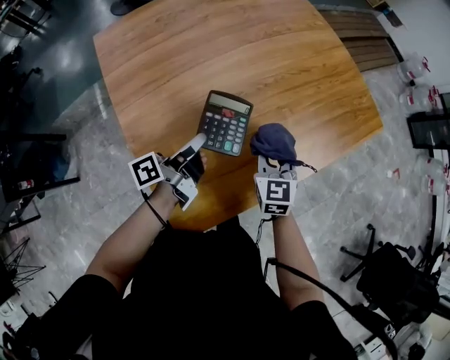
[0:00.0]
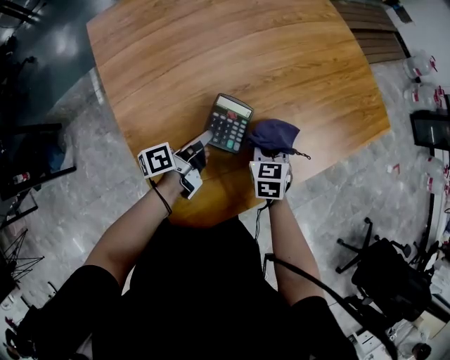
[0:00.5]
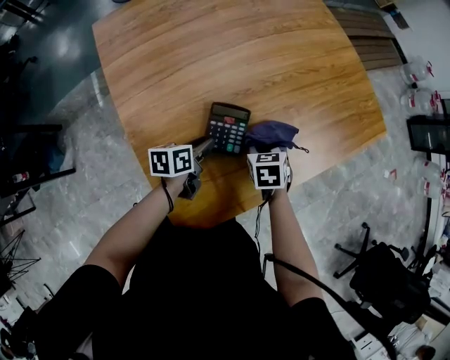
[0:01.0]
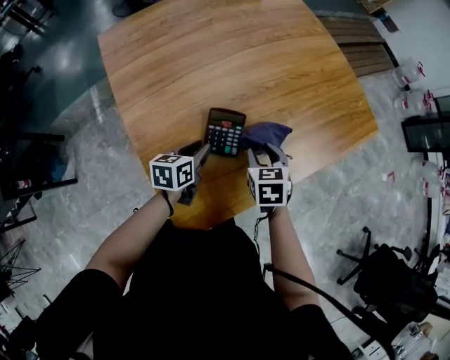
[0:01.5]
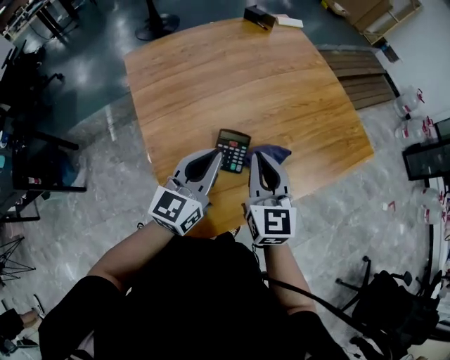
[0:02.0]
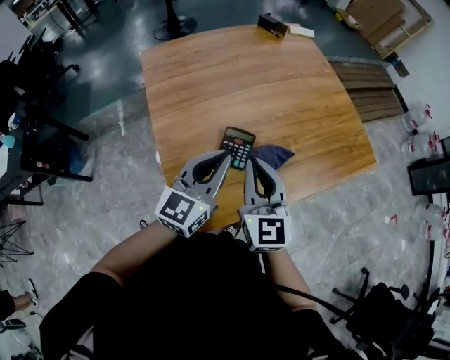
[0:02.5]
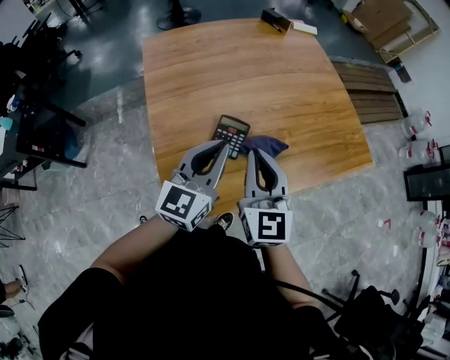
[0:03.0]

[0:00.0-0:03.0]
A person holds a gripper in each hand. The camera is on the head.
0:00.0 to 0:01.5: The left gripper is displaced downward by some 10 cm, and angles its fingers downward, by approximately 30 degrees. Meanwhile the right gripper travels downward and back again, some 10 cm each way, and changes its angle by roughly 30 degrees.
0:01.5 to 0:03.0: Both grippers move upward, roughly 25 cm. The left gripper tips its fingers upward by approximately 30 degrees, and closes its fingers. The right gripper angles its fingers upward, by roughly 50 degrees, and closes up.

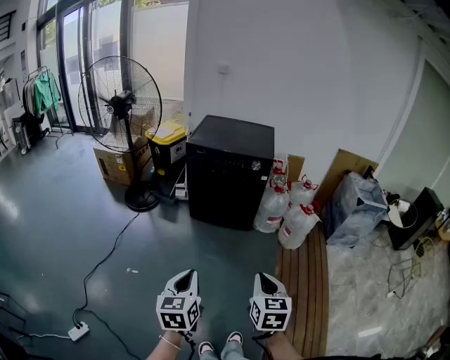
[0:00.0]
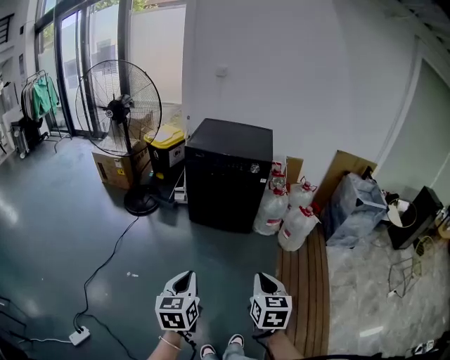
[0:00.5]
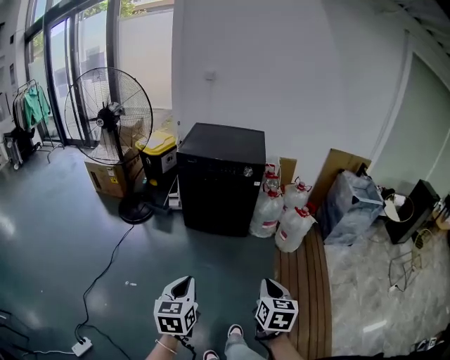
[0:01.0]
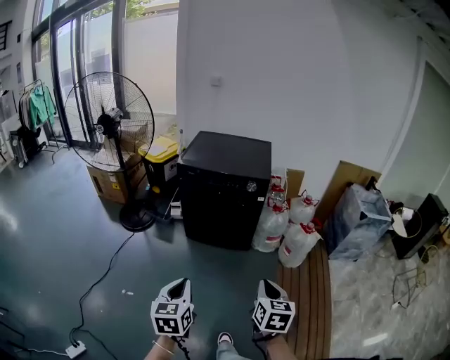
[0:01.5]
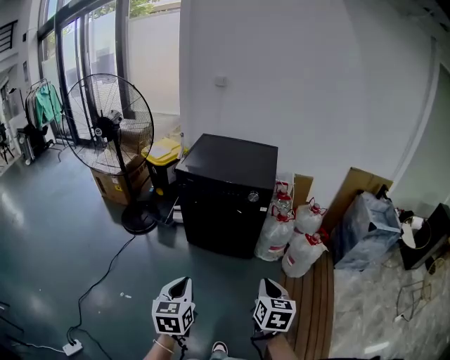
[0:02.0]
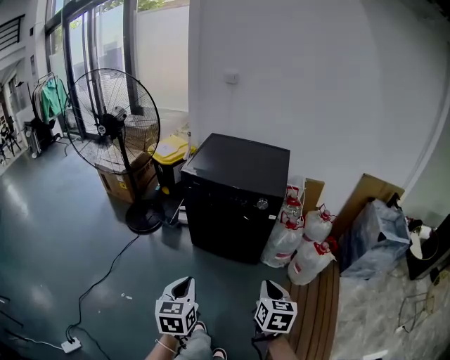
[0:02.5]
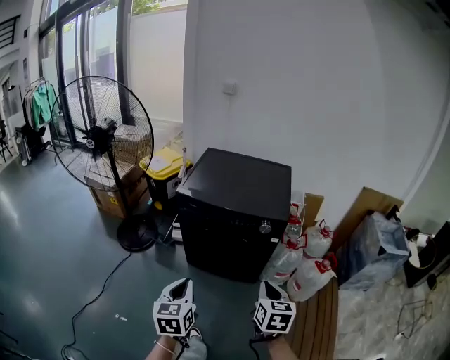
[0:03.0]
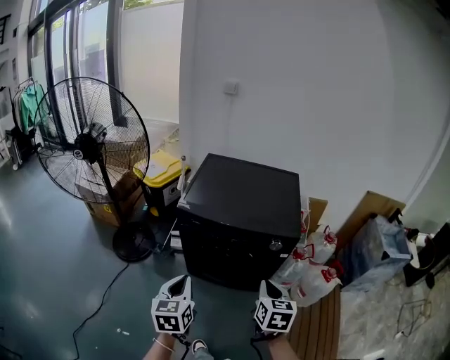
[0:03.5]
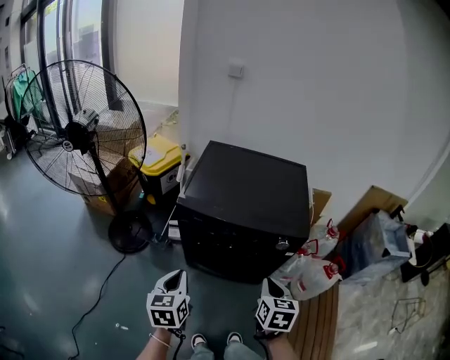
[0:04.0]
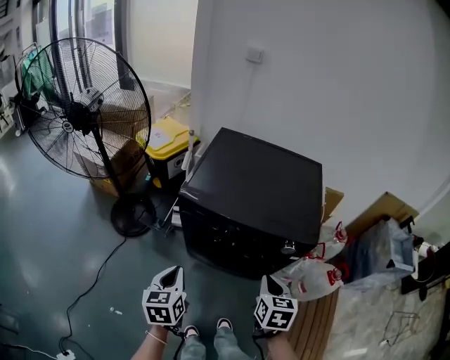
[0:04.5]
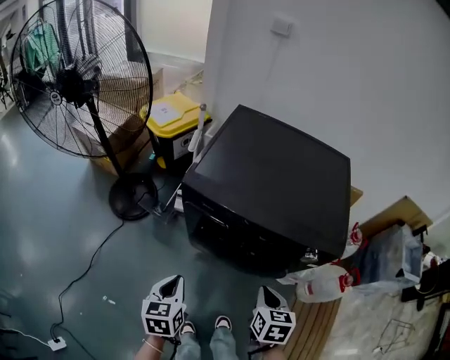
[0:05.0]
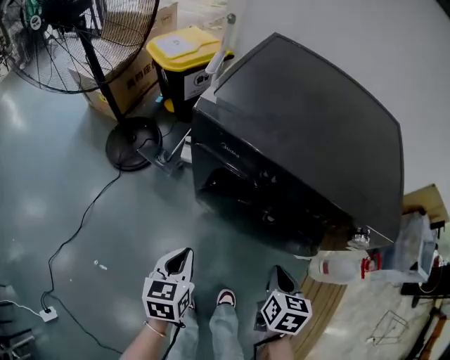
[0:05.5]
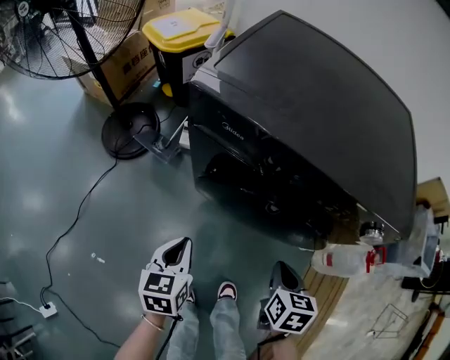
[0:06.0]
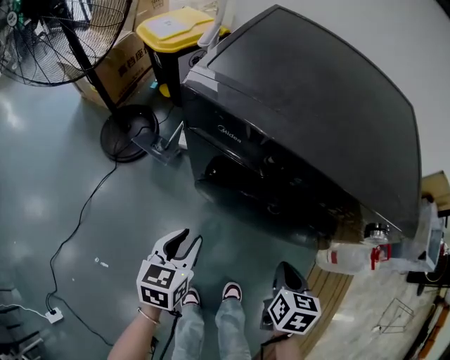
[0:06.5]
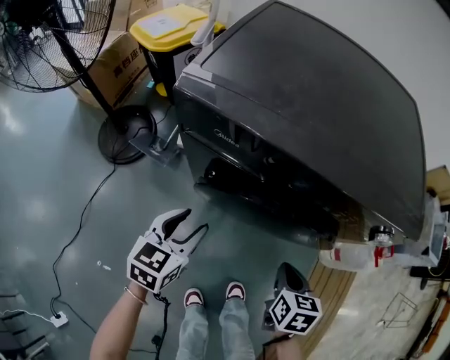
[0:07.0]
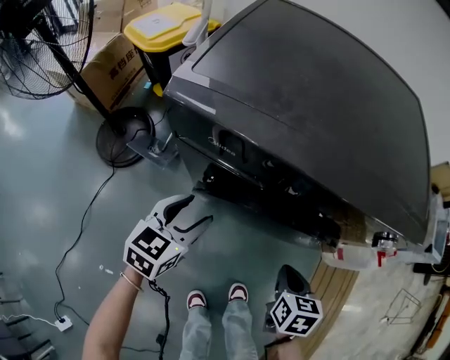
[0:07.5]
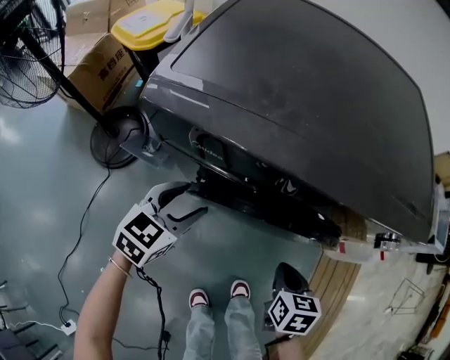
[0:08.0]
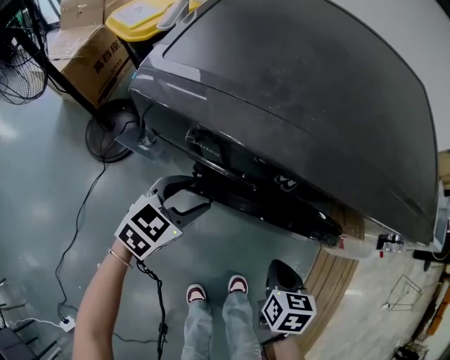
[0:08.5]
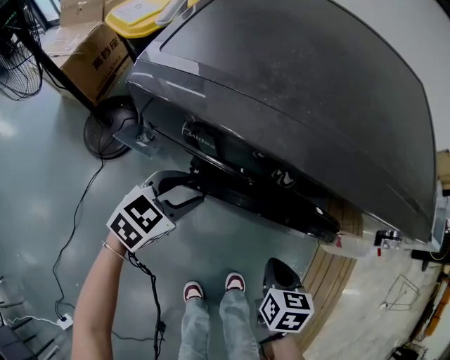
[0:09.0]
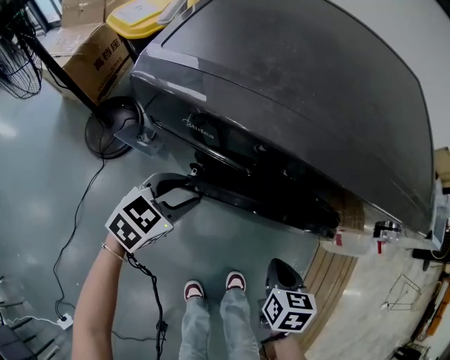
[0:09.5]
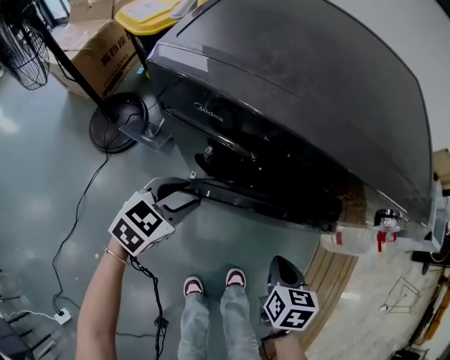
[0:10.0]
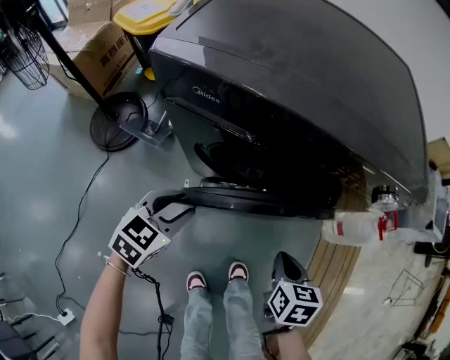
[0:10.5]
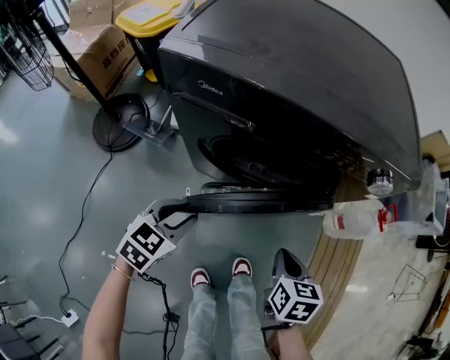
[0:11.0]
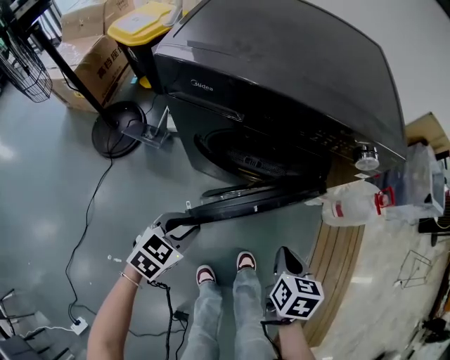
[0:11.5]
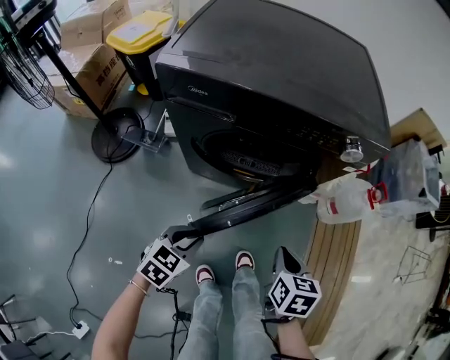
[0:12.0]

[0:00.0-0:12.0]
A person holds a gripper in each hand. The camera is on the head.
0:00.0 to 0:02.0: The two grippers go approximately 20 cm forward.
0:02.0 to 0:04.0: The grippers both shift forward by some 35 cm.
0:04.0 to 0:06.0: The two grippers go roughly 30 cm downward.
0:06.0 to 0:08.0: The left gripper shifts about 15 cm forward, turns by approximately 40 degrees, and opens its fingers.
0:08.0 to 0:10.0: The left gripper changes place by roughly 5 cm.
0:10.0 to 0:12.0: The left gripper shifts approximately 20 cm backward and to the right, and closes up; the right gripper heads backward, upward and to the right, covering roughly 15 cm.

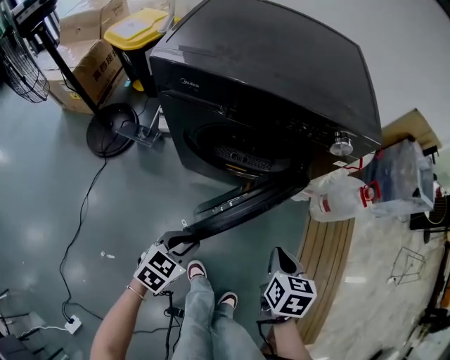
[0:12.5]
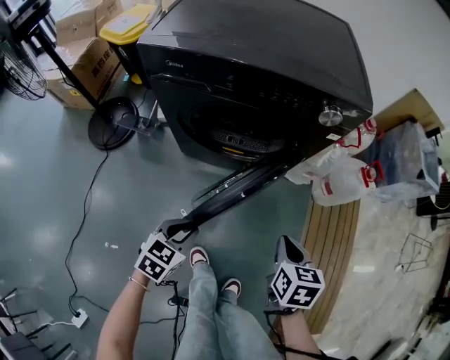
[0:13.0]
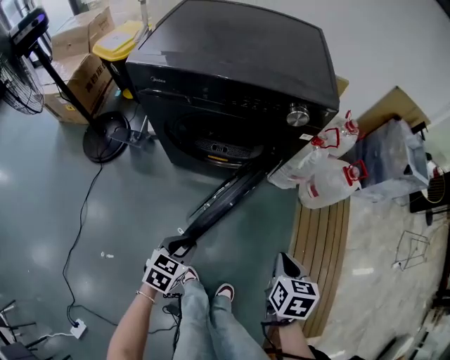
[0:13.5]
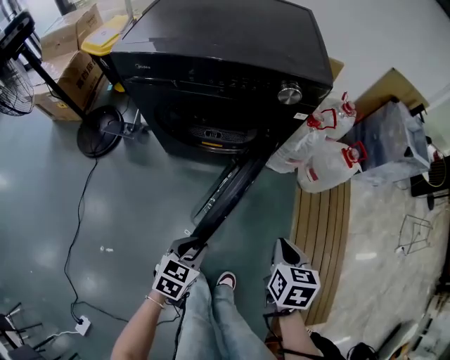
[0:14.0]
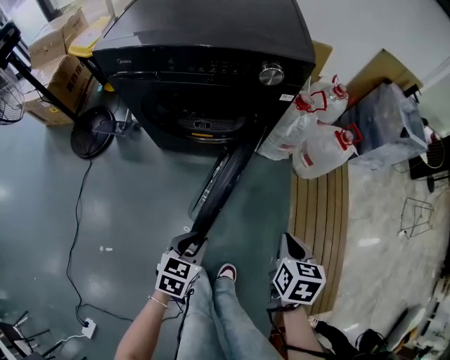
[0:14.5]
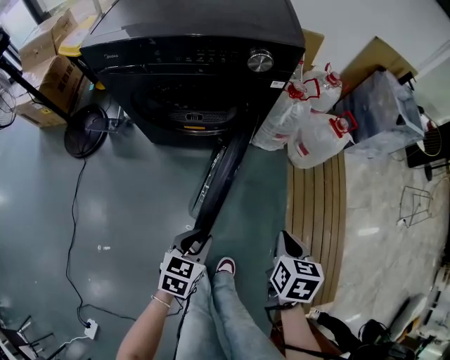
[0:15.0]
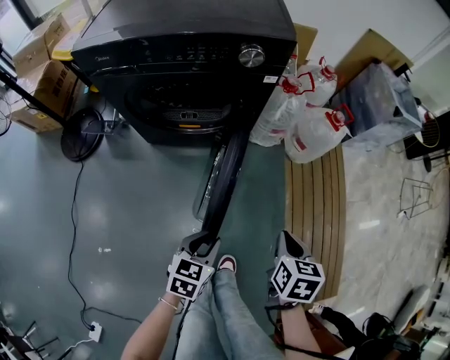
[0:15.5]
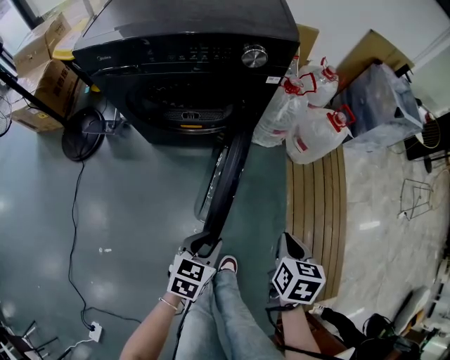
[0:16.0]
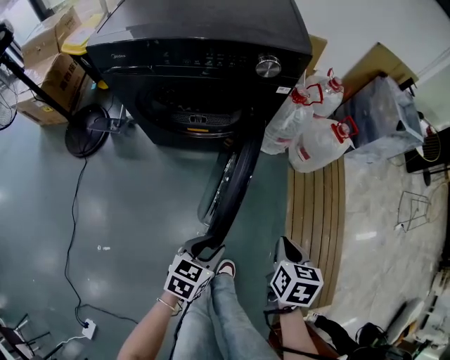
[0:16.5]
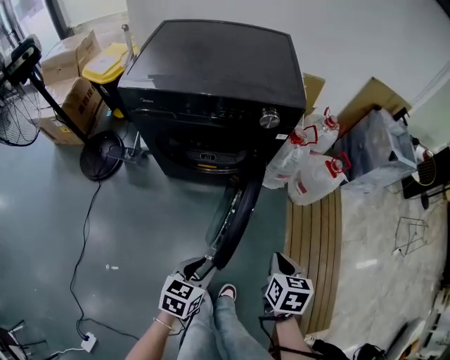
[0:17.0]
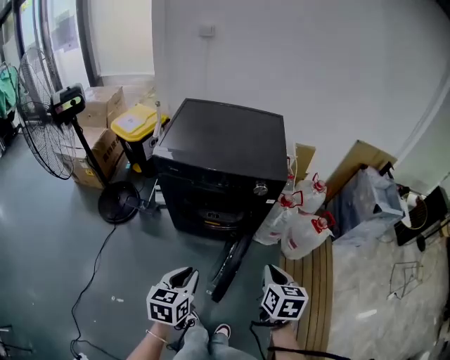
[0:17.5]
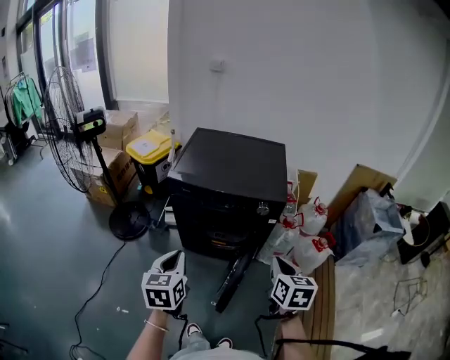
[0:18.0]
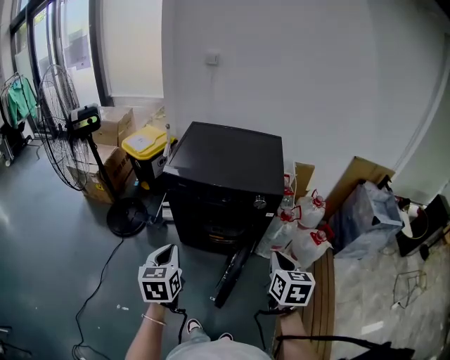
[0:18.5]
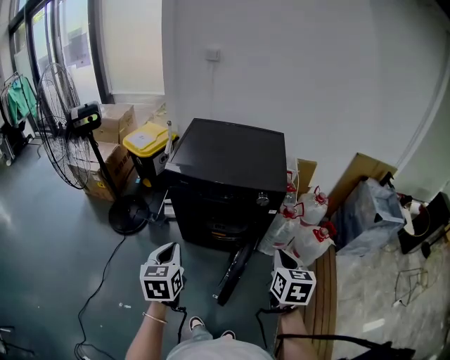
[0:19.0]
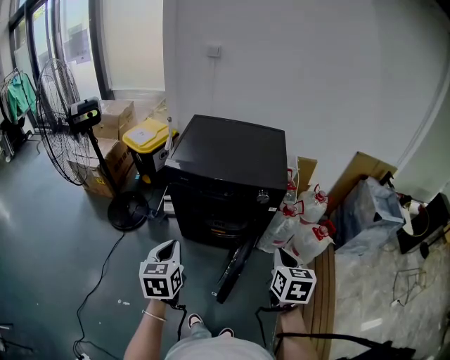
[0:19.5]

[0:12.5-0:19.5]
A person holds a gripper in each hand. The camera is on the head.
0:12.5 to 0:14.5: The two grippers go roughly 20 cm to the right and backward.
0:14.5 to 0:16.0: The left gripper is displaced to the right by about 5 cm.
0:16.0 to 0:17.5: Both grippers move upward and to the left, about 30 cm. The right gripper turns by some 20 degrees. The left gripper rotates approximately 30 degrees.
0:17.5 to 0:19.5: The right gripper shifts roughly 10 cm upward. Meanwhile the left gripper moves upward and to the left, roughly 15 cm.

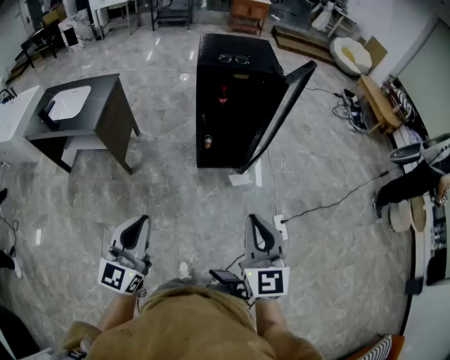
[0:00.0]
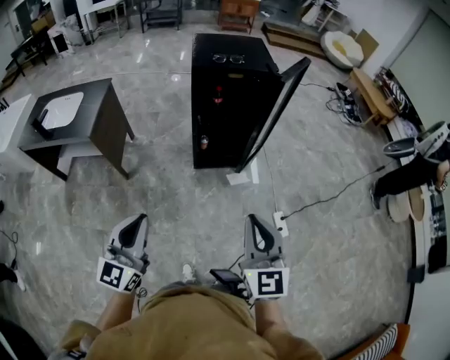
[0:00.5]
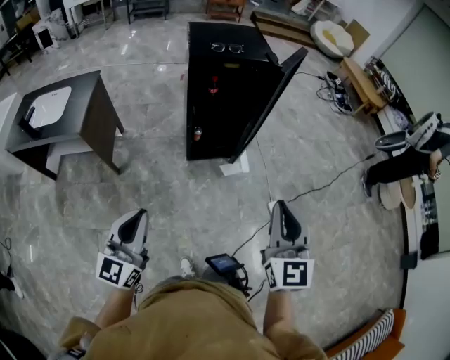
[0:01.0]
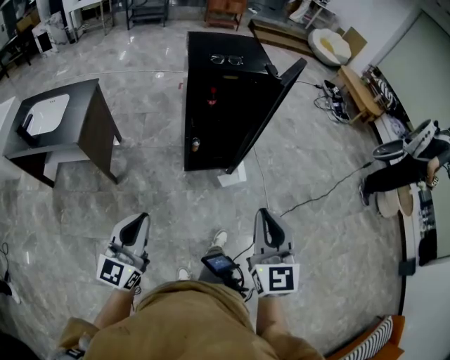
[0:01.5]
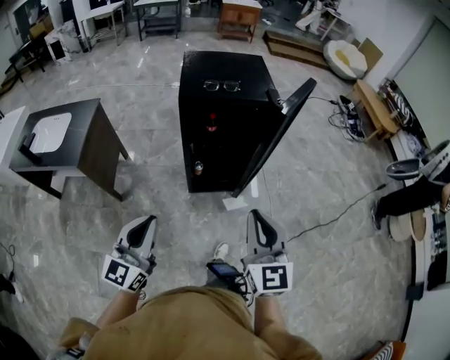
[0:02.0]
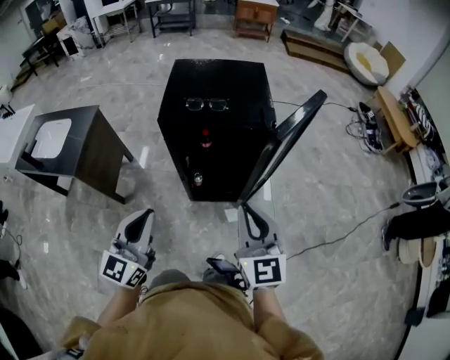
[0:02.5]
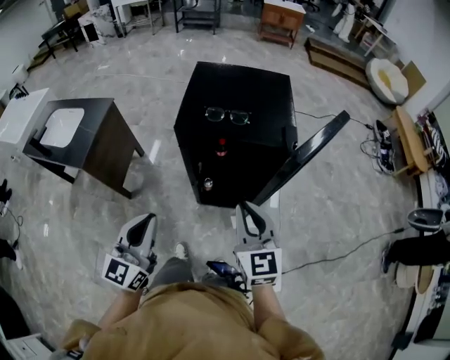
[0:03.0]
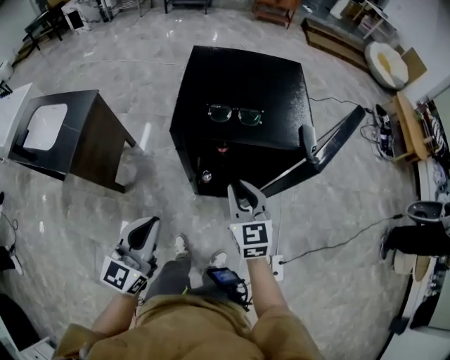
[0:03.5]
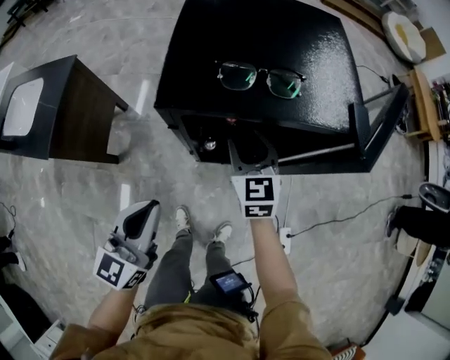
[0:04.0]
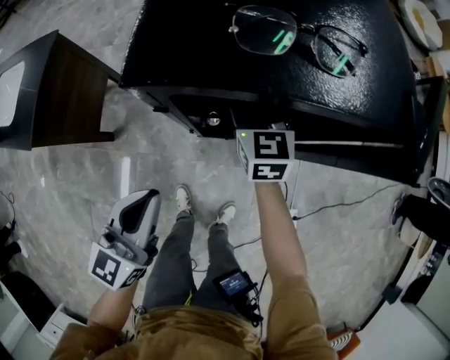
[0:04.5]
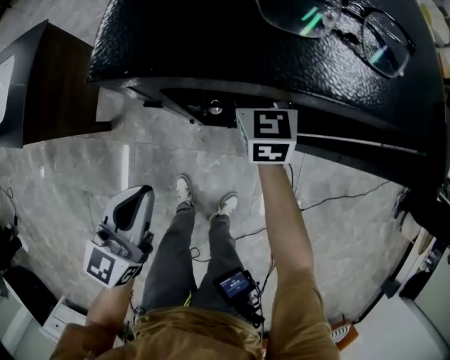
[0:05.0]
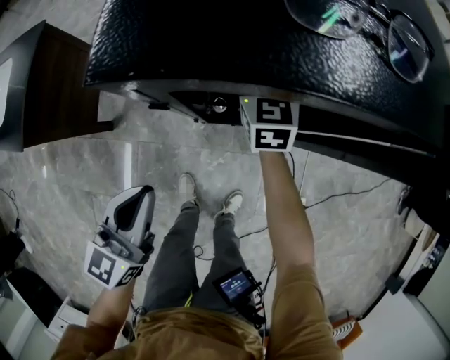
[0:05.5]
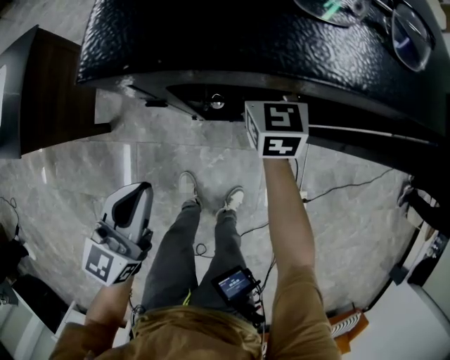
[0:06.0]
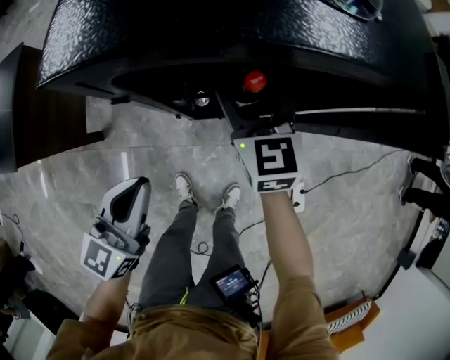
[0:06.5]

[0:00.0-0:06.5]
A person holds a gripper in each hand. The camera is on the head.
0:00.0 to 0:02.0: Both grippers travel together forward, roughly 20 cm.
0:02.0 to 0:04.5: The right gripper heads forward and downward, covering approximately 60 cm, and opens, while the left gripper shifts roughly 35 cm forward and downward.
0:04.5 to 0:06.5: The left gripper is displaced downward by approximately 5 cm.
